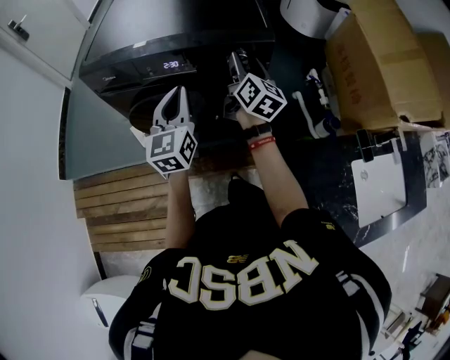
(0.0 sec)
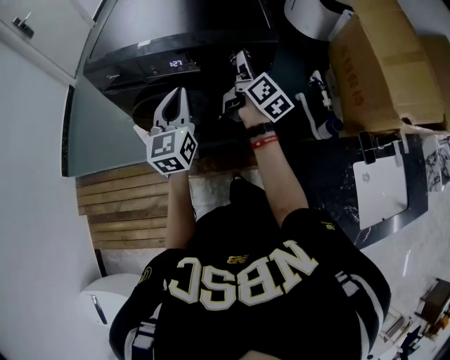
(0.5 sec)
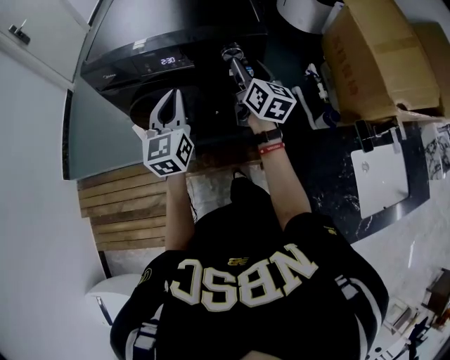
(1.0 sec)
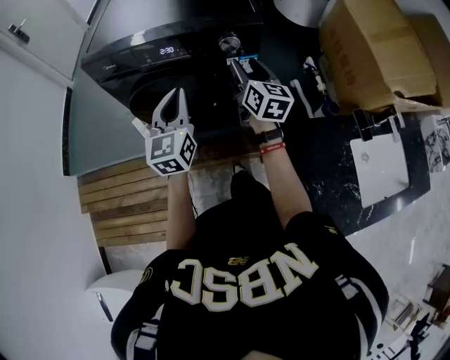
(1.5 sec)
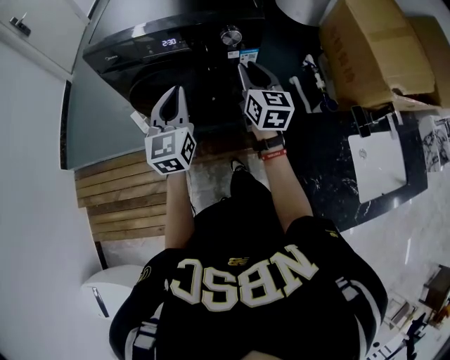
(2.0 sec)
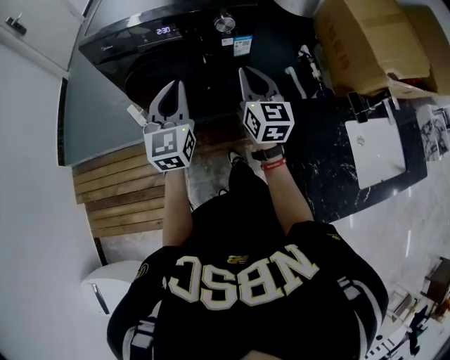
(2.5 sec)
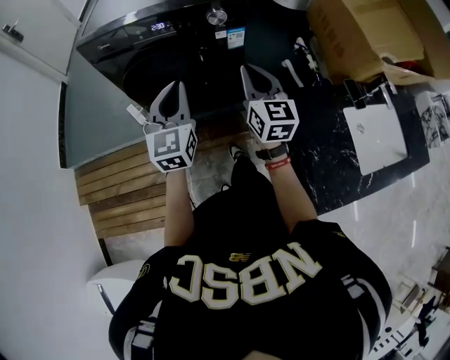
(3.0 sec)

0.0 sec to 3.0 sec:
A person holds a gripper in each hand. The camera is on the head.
0.0 sec to 1.5 sec: Both grippers travel together backward, roughly 10 cm.
1.5 sec to 3.0 sec: The right gripper shifts about 15 cm backward, and closes its fingers. Meanwhile the left gripper shifts about 10 cm backward.

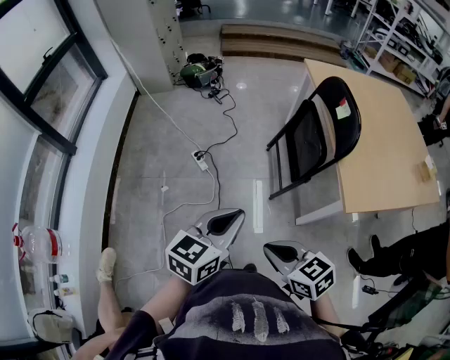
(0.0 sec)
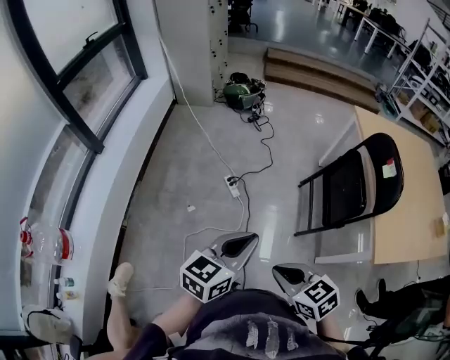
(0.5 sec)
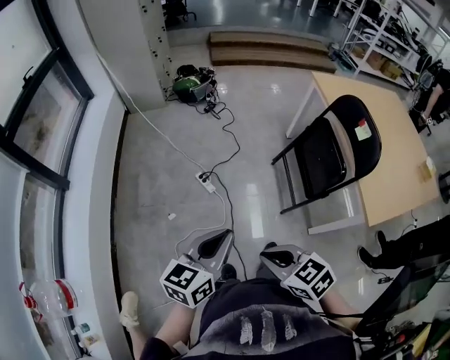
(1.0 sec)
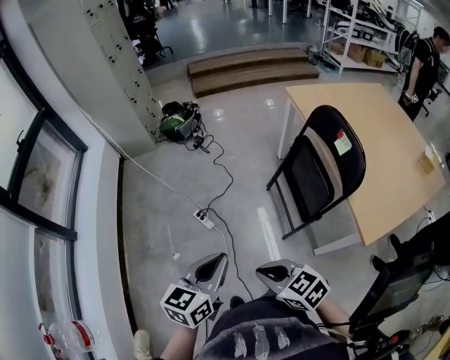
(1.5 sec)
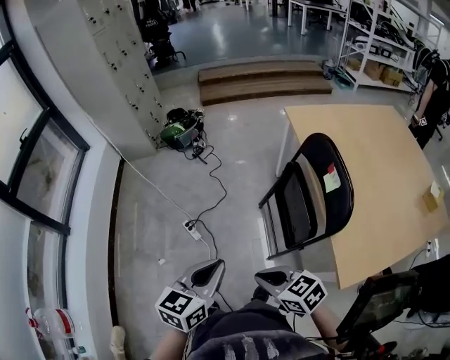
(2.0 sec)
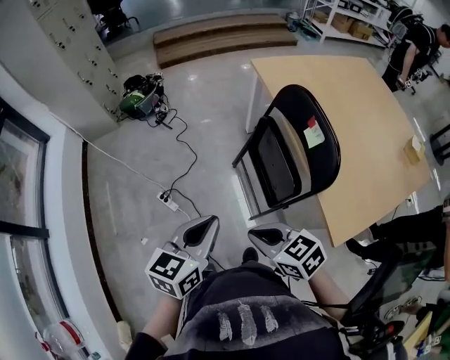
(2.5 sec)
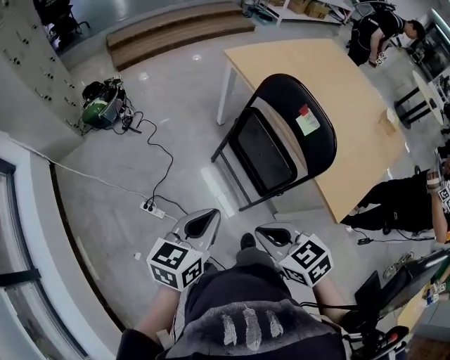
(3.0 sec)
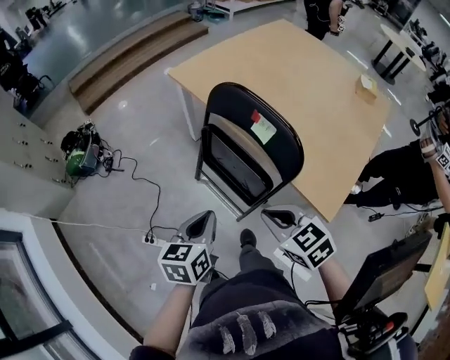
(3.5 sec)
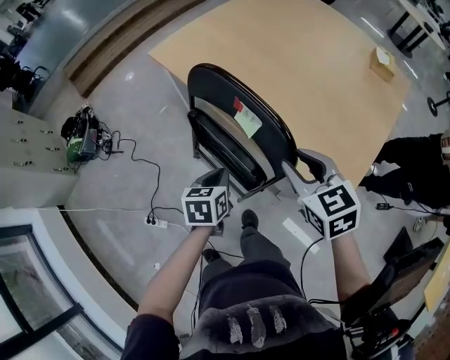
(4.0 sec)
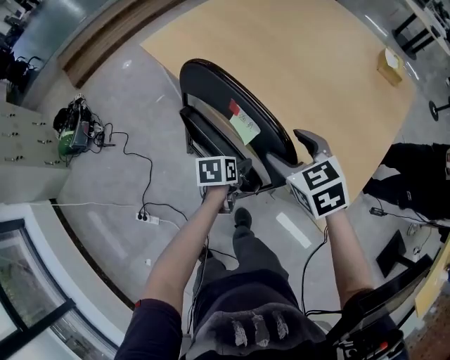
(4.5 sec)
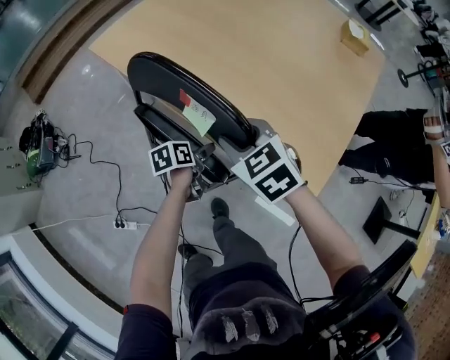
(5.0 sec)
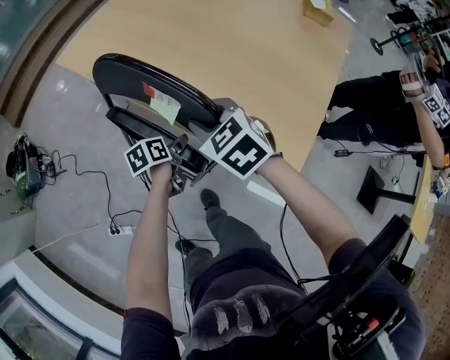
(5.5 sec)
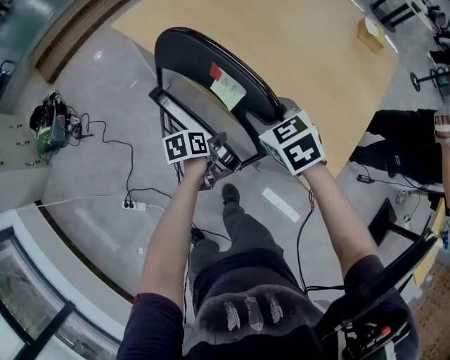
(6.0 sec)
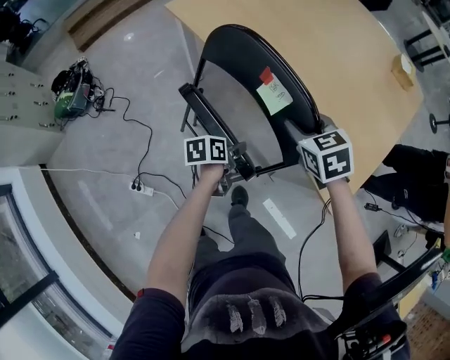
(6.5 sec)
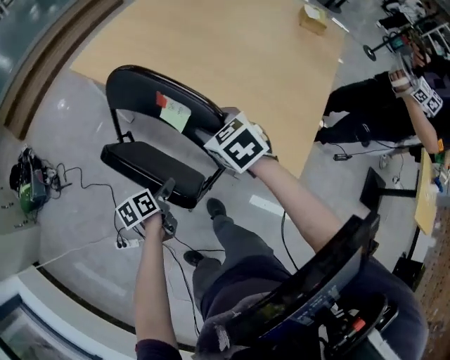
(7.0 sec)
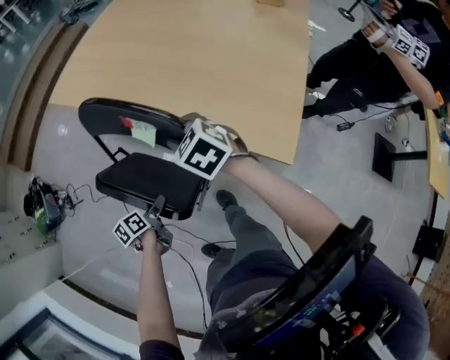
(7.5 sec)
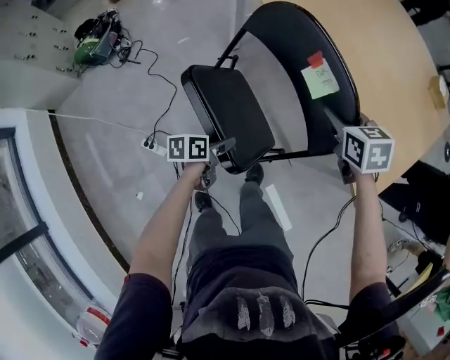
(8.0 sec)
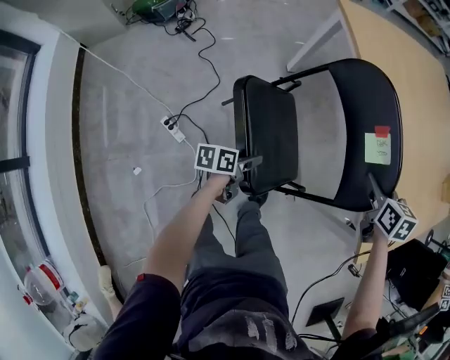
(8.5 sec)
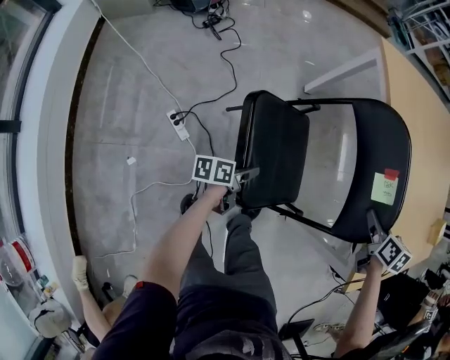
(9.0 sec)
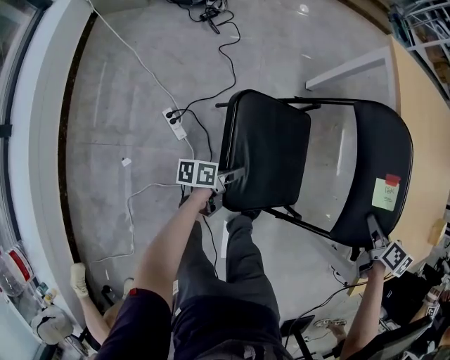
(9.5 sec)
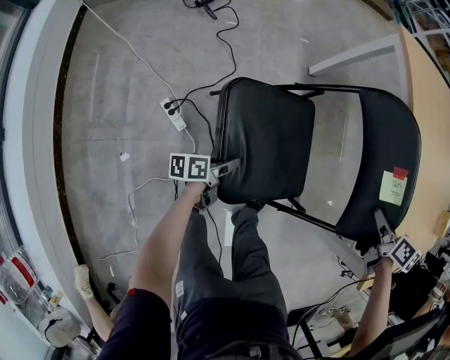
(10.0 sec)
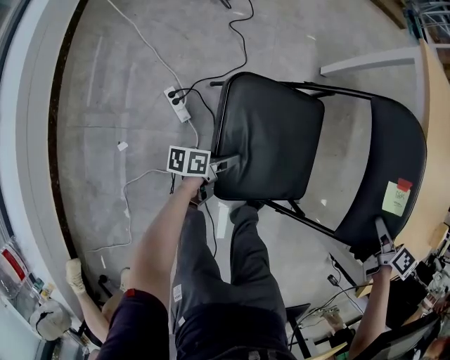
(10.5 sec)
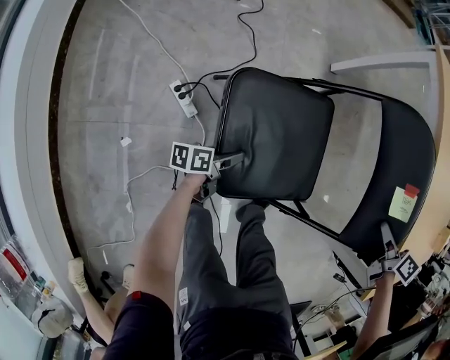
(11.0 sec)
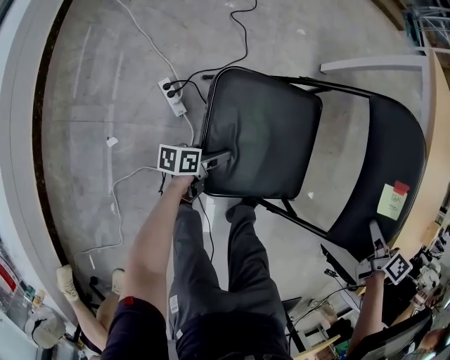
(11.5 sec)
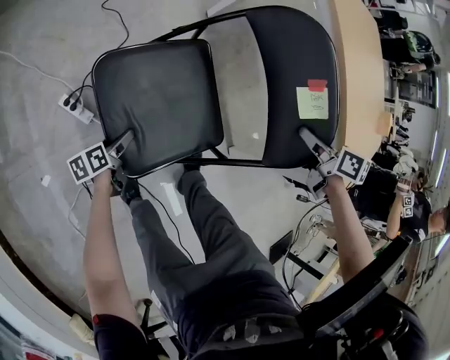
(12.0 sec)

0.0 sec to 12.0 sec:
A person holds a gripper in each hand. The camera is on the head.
0.0 sec to 2.0 sec: The two grippers go roughly 20 cm forward. The left gripper goes to the left and returns, approximately 15 cm each way.
2.0 sec to 4.0 sec: The left gripper shifts by roughly 40 cm, and changes its angle by approximately 40 degrees, while the right gripper moves some 35 cm, rotates about 60 degrees, and opens up.
4.0 sec to 6.0 sec: The right gripper heads downward and forward, covering approximately 10 cm, and opens, then closes again; the left gripper shifts about 10 cm downward, rotates some 30 degrees, and opens its fingers.
6.0 sec to 8.0 sec: The left gripper heads backward and to the left, covering roughly 20 cm.
8.0 sec to 10.0 sec: The left gripper heads to the left and downward, covering approximately 20 cm, and rotates about 30 degrees, while the right gripper moves approximately 5 cm, and swivels some 20 degrees.
10.0 sec to 12.0 sec: The right gripper heads to the left, covering approximately 10 cm. The left gripper heads downward and to the left, covering approximately 15 cm, and opens up.

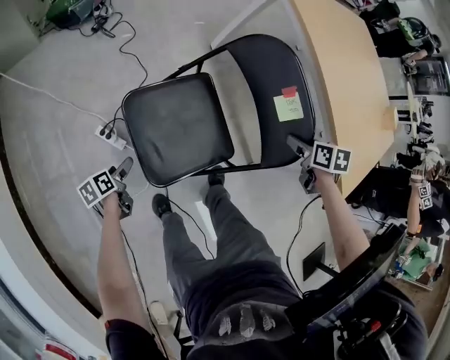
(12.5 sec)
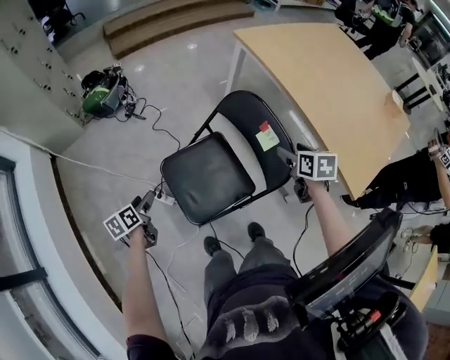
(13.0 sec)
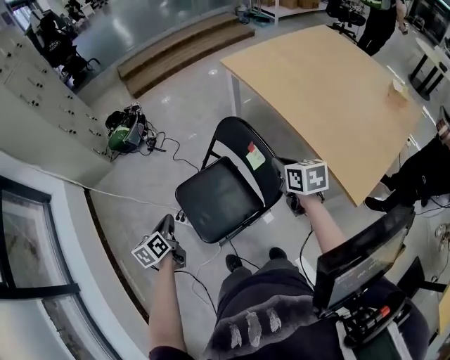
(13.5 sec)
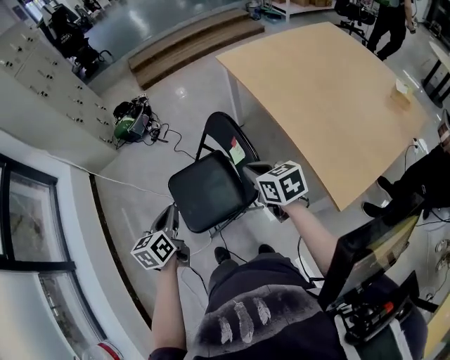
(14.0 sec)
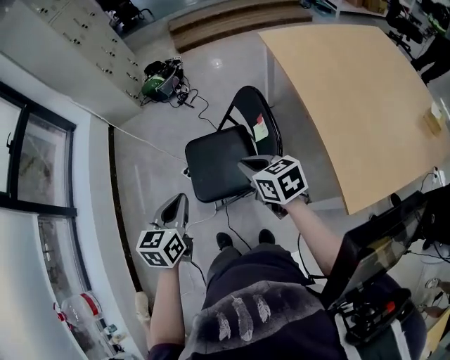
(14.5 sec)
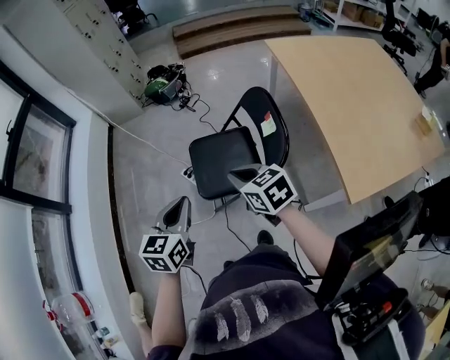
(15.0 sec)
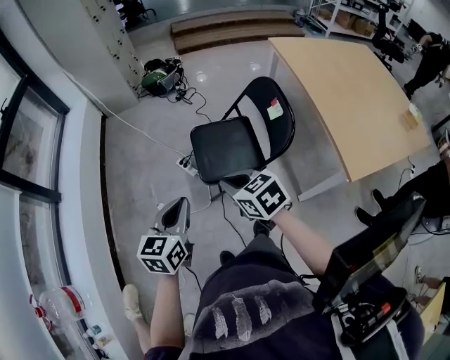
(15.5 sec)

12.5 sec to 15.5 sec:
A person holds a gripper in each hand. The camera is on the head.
12.5 sec to 14.0 sec: The left gripper is displaced upward by approximately 40 cm, turns by some 40 degrees, and closes. The right gripper travels upward by approximately 20 cm, tips its fingers upward by some 30 degrees, and closes its fingers.
14.0 sec to 15.5 sec: The left gripper goes some 25 cm backward and to the left; the right gripper travels to the left and backward by approximately 35 cm, and rotates about 30 degrees.

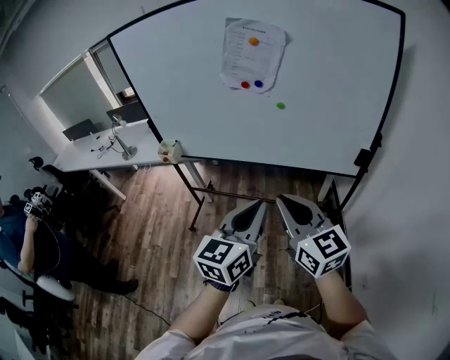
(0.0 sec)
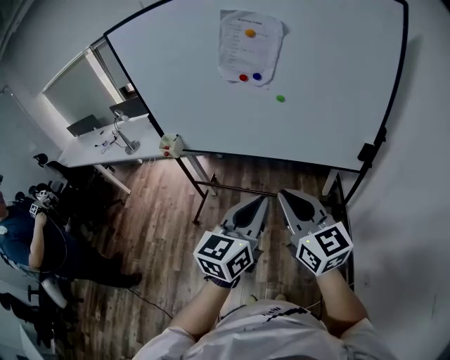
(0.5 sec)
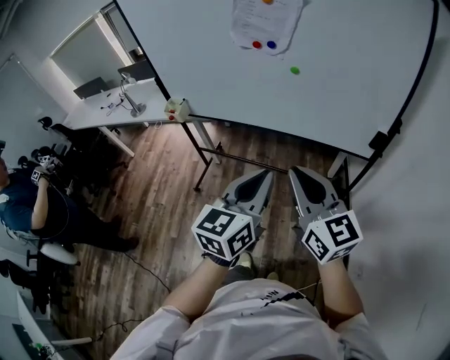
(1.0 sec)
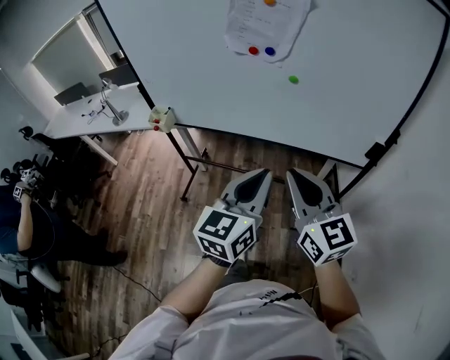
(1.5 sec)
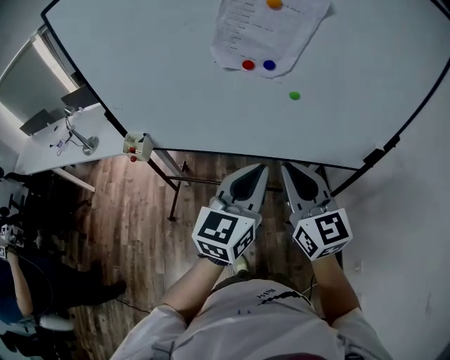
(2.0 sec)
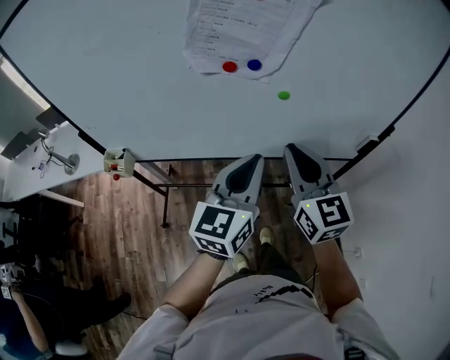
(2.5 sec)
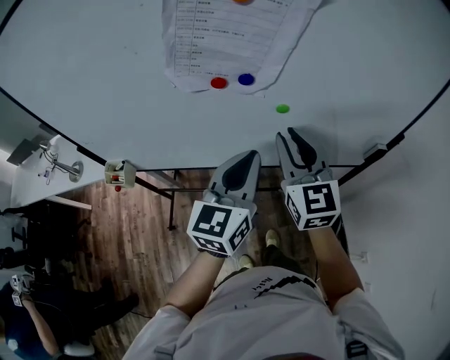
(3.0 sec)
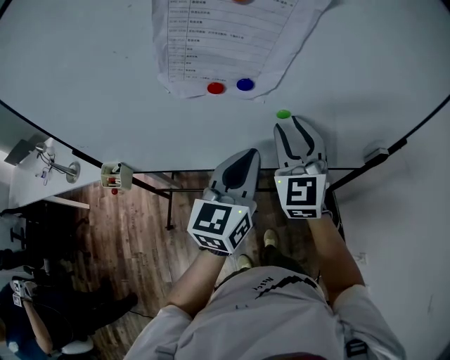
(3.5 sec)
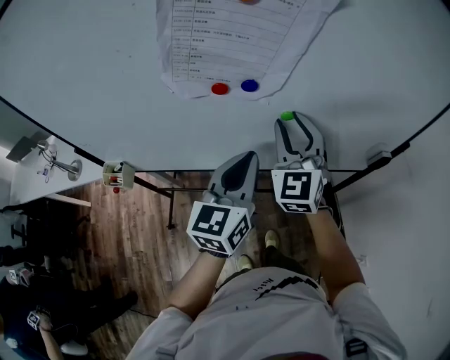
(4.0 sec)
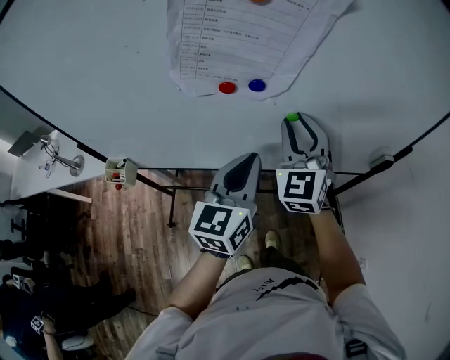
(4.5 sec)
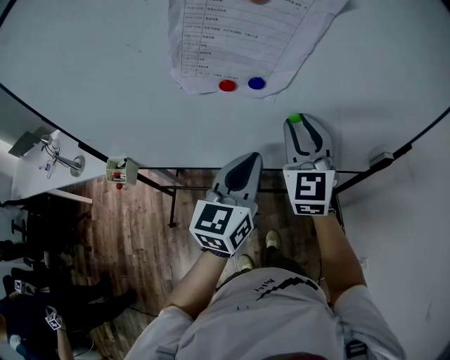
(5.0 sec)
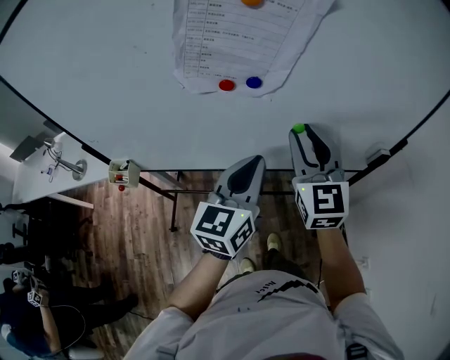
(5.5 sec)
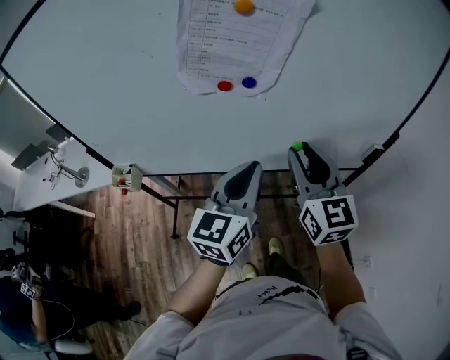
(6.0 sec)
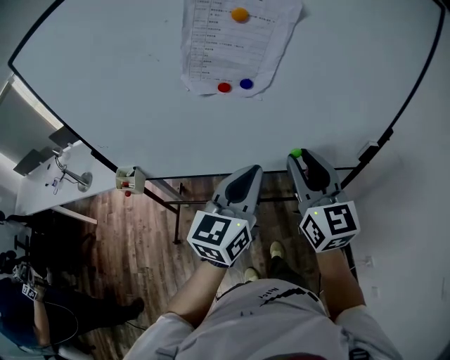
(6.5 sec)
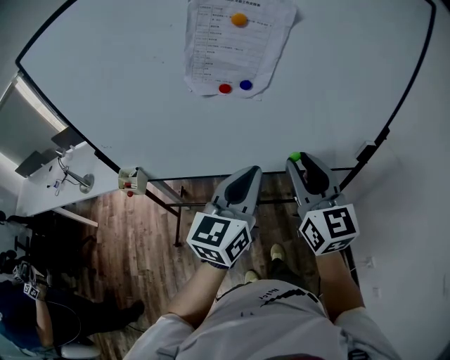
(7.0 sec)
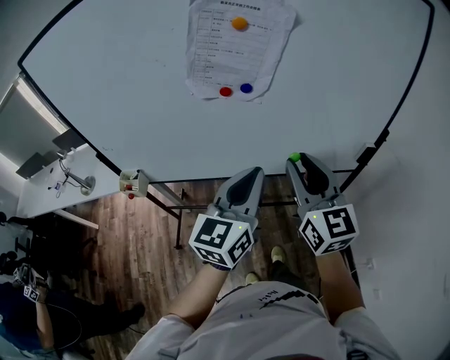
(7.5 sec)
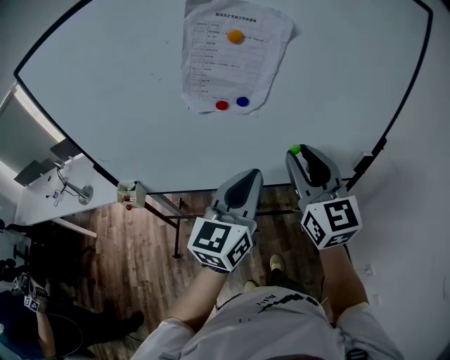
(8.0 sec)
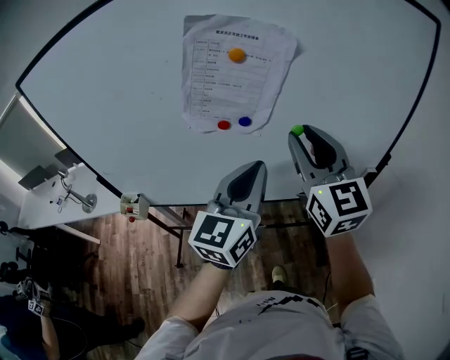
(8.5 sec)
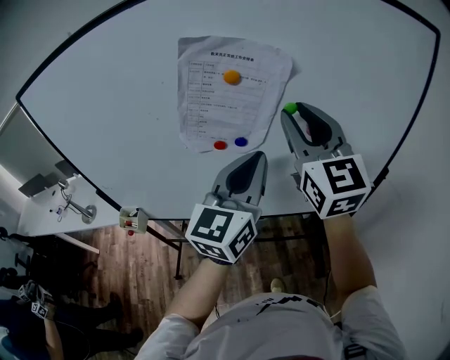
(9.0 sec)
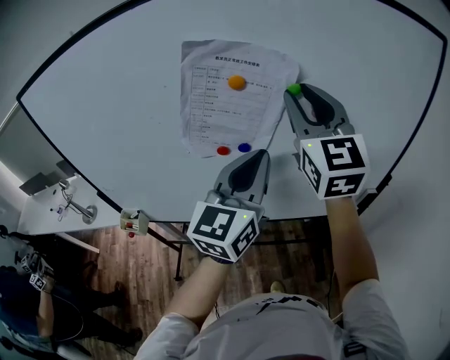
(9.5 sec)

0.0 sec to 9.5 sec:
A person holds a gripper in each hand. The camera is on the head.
0.0 sec to 2.0 sec: Both grippers move forward, some 20 cm.
2.0 sec to 4.0 sec: The grippers both shift forward by some 20 cm. The right gripper changes its angle by some 40 degrees, and opens up.
4.0 sec to 5.5 sec: The right gripper is displaced backward by roughly 5 cm.
5.5 sec to 7.5 sec: The left gripper is displaced backward and upward by some 10 cm. The right gripper travels backward by roughly 15 cm.
7.5 sec to 9.5 sec: The left gripper travels forward and upward by roughly 20 cm. The right gripper goes about 25 cm upward and forward, and rotates some 20 degrees.
